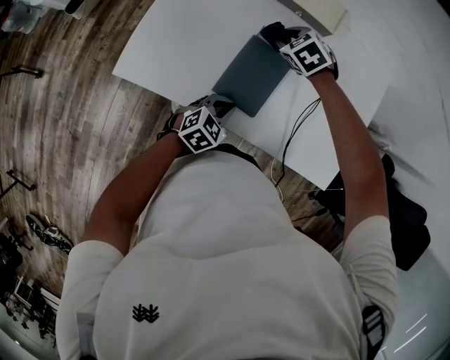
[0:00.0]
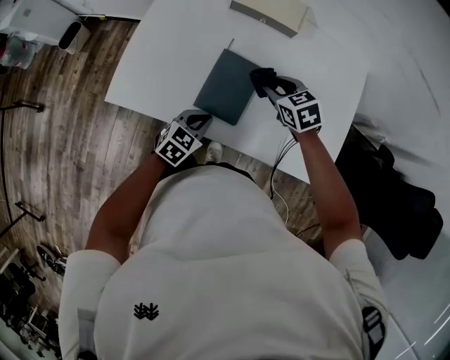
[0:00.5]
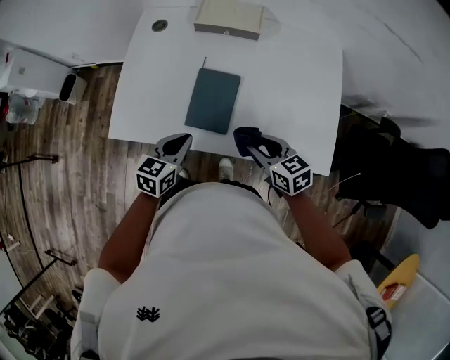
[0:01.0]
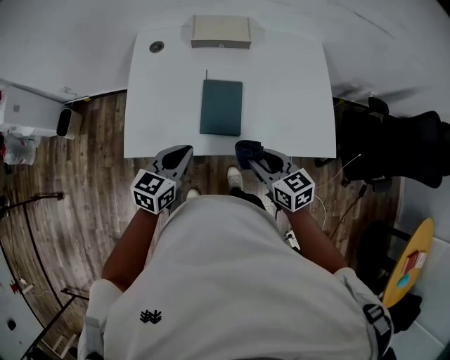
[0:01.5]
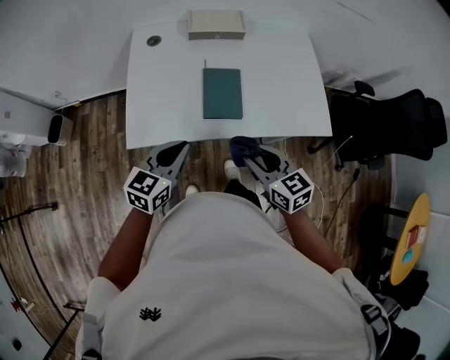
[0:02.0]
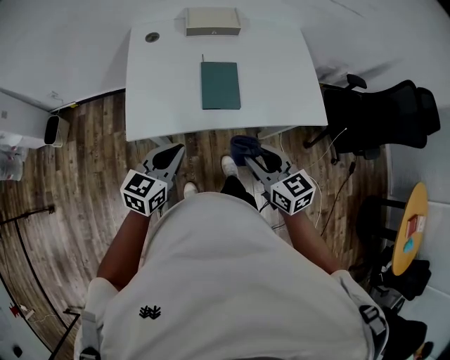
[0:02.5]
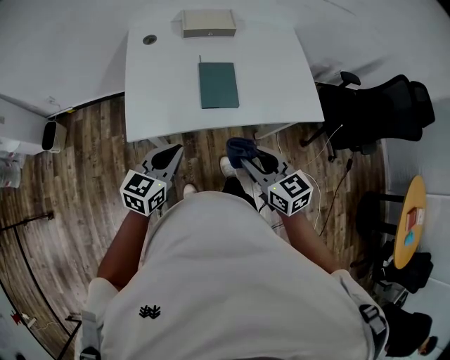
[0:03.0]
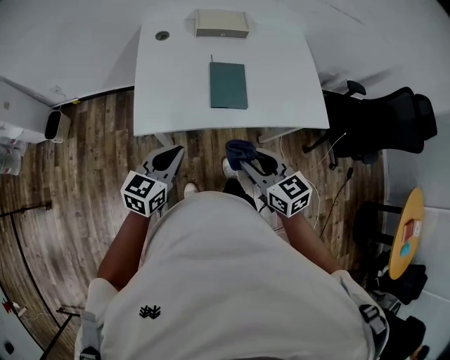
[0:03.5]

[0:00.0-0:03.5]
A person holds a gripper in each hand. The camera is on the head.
0:00.0 to 0:02.0: The right gripper moves backward, approximately 40 cm, and tips its fingers upward by approximately 40 degrees; the left gripper shifts approximately 25 cm upward, to the left and backward, and turns by roughly 30 degrees.
0:02.0 to 0:03.5: The grippers both shift backward by approximately 5 cm.

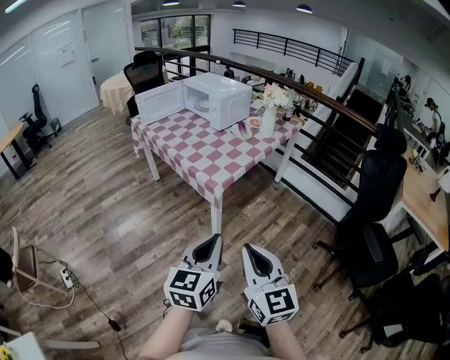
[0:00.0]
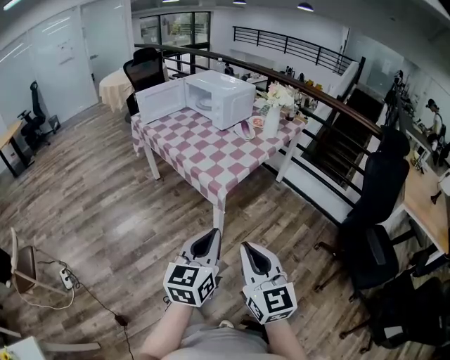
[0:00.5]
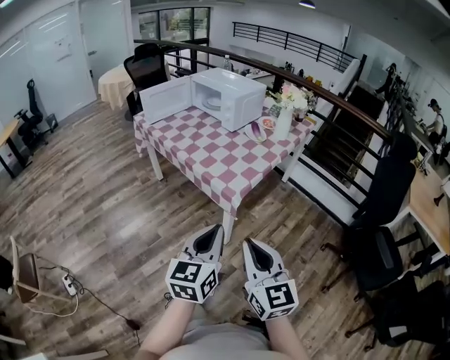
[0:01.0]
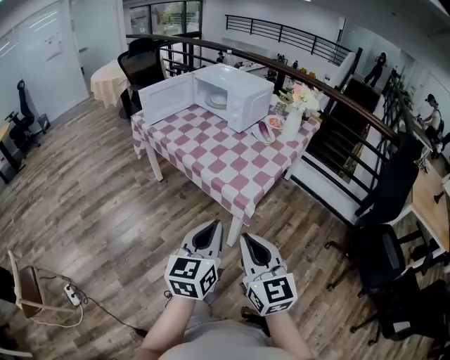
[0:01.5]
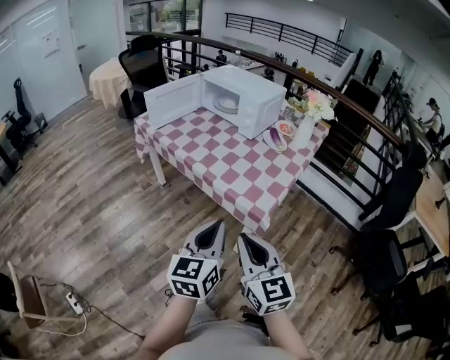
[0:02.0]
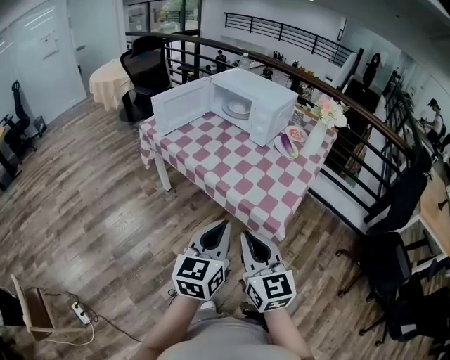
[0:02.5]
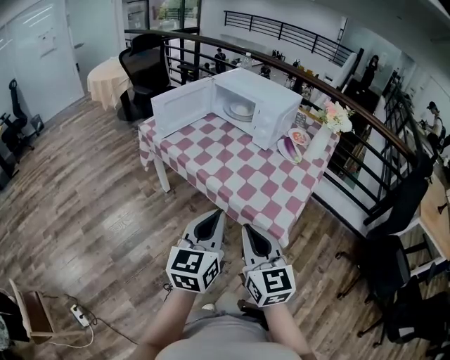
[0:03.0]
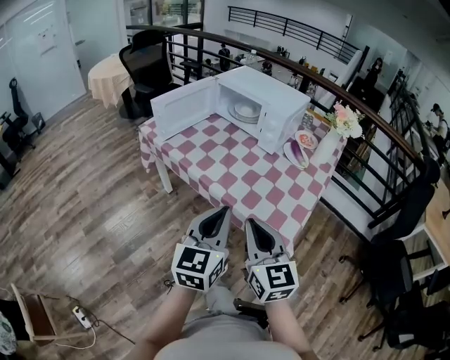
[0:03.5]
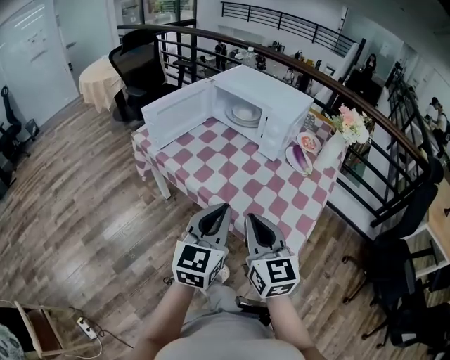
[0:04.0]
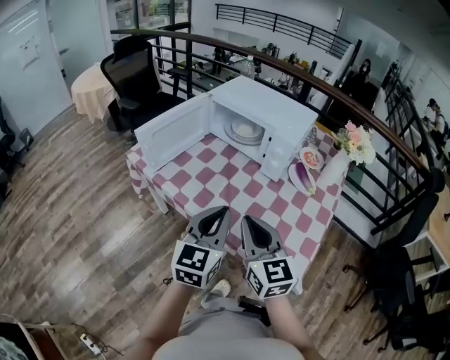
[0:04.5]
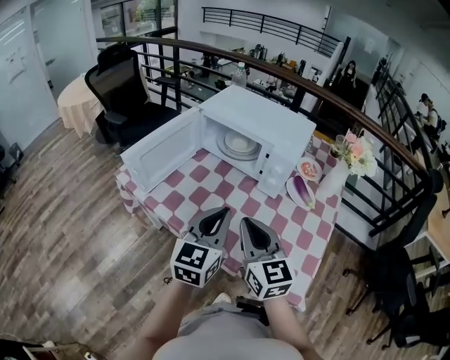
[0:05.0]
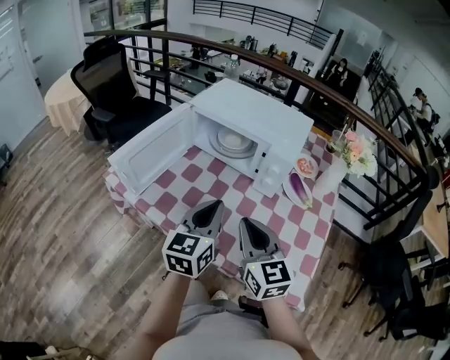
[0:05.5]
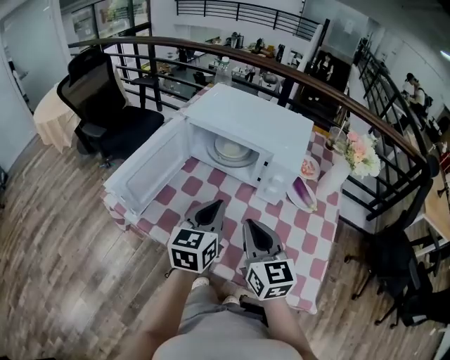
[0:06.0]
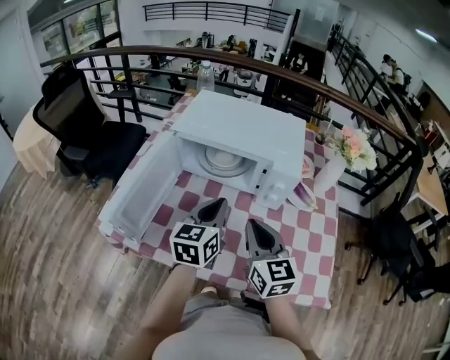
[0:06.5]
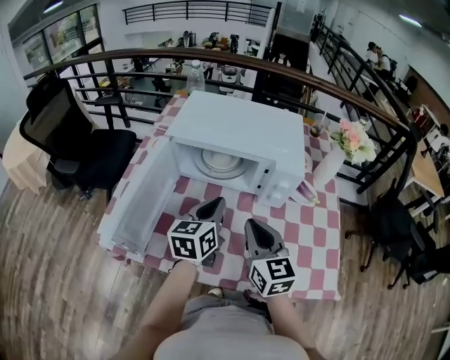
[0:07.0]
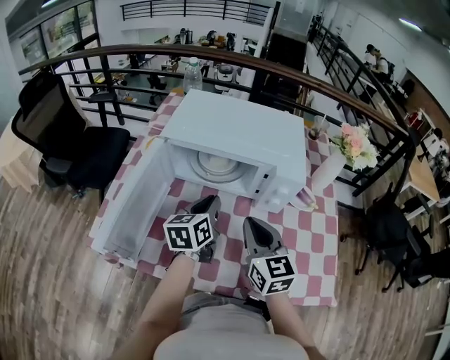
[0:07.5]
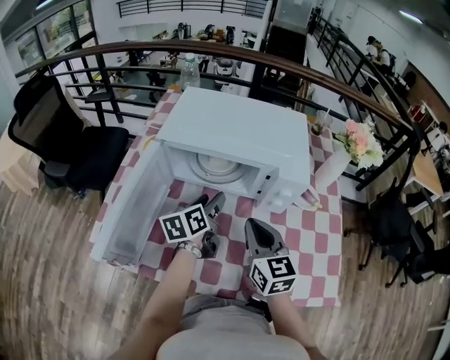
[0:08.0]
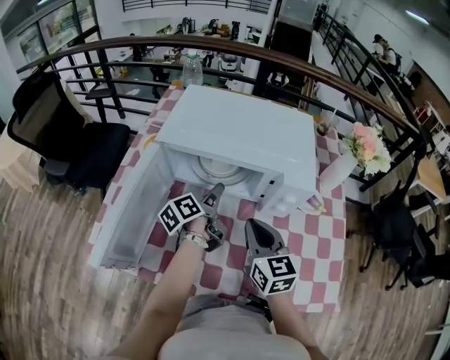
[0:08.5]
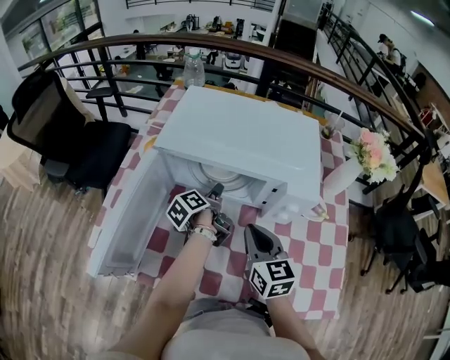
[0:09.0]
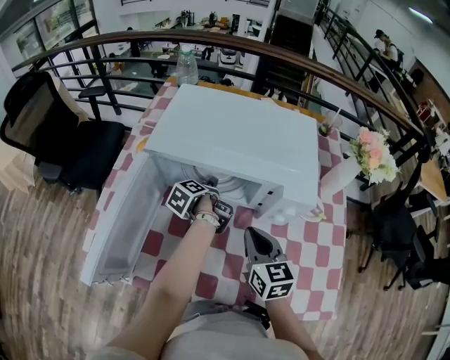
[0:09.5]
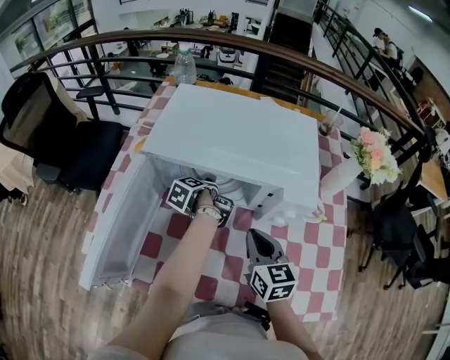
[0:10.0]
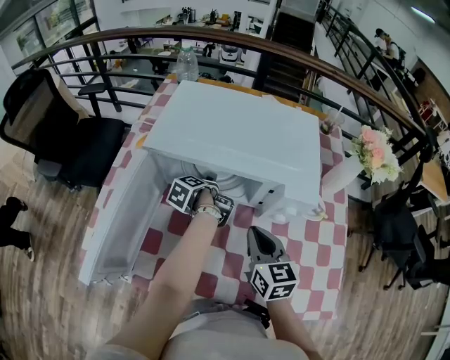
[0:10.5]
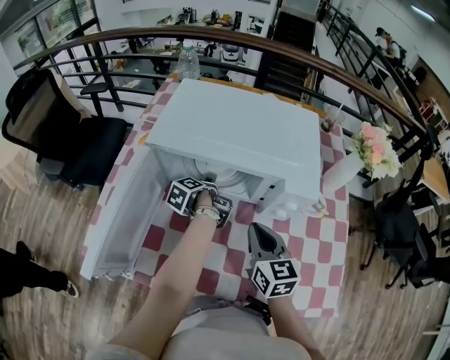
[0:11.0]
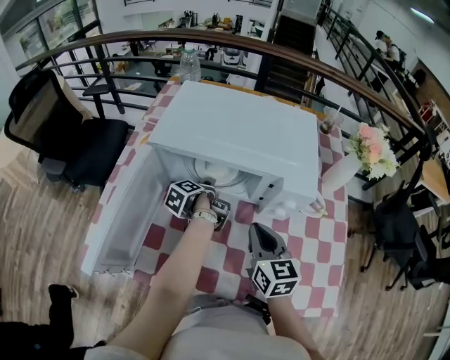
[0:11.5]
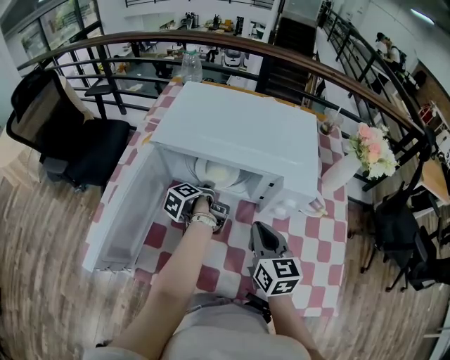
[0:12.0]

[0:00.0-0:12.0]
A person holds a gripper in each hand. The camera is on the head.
0:00.0 to 0:02.0: The left gripper is displaced forward and to the left by approximately 30 cm. Meanwhile the right gripper heads to the left and forward, covering roughly 35 cm.
0:02.0 to 0:04.0: The grippers both shift forward by some 25 cm.
0:04.0 to 0:06.0: The grippers both shift forward by about 25 cm.
0:06.0 to 0:08.0: The right gripper shifts approximately 10 cm forward and downward; the left gripper moves forward and downward, some 20 cm, changes its angle by approximately 30 degrees, and opens.
0:08.0 to 0:10.0: The left gripper shifts approximately 15 cm downward and forward, and rolls counterclockwise, seen from behind, by approximately 50 degrees; the right gripper shifts approximately 5 cm downward.
0:10.0 to 0:12.0: The left gripper closes up.

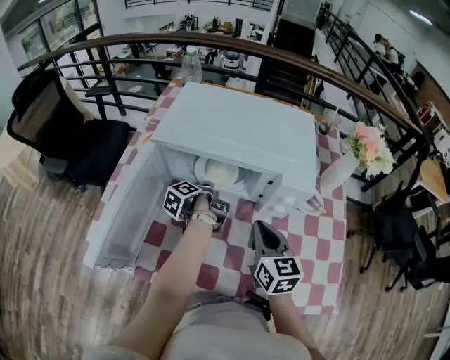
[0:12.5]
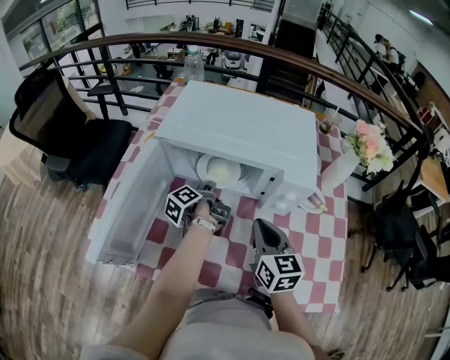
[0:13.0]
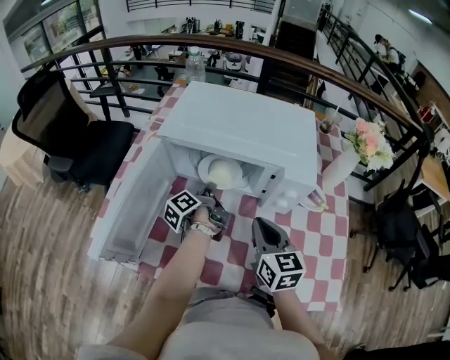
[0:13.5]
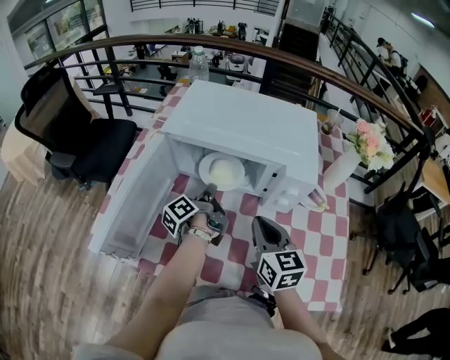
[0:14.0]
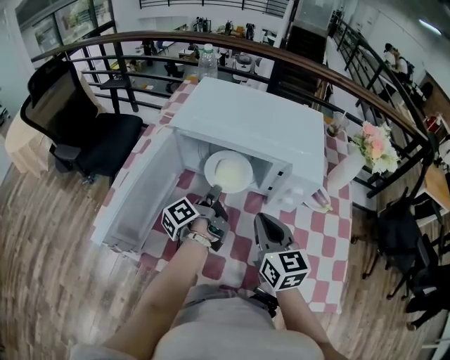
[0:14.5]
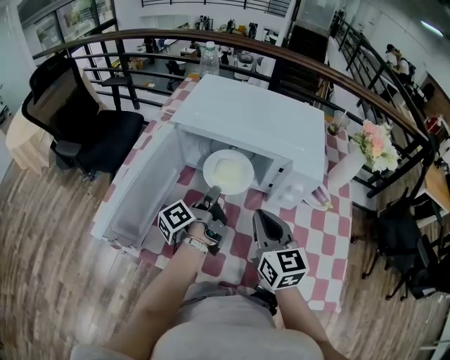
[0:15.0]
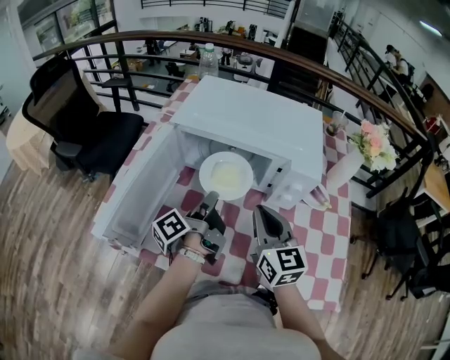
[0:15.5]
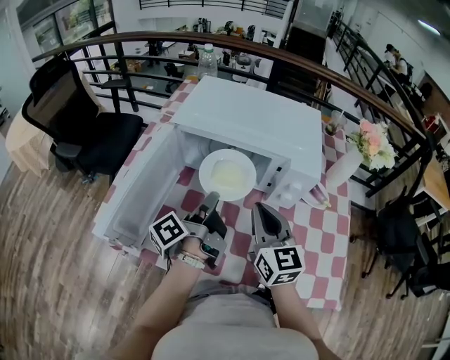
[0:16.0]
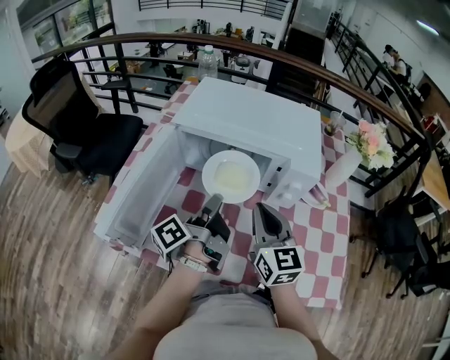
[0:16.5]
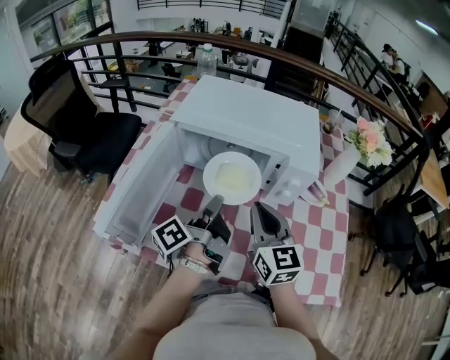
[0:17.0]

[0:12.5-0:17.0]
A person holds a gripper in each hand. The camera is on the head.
0:12.5 to 0:14.5: The left gripper moves upward and backward, about 10 cm, and changes its angle by about 30 degrees.
0:14.5 to 0:17.0: The left gripper travels backward and upward by roughly 10 cm.

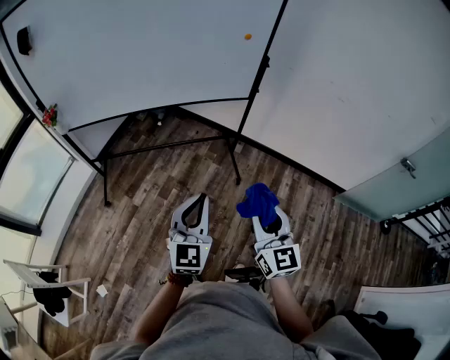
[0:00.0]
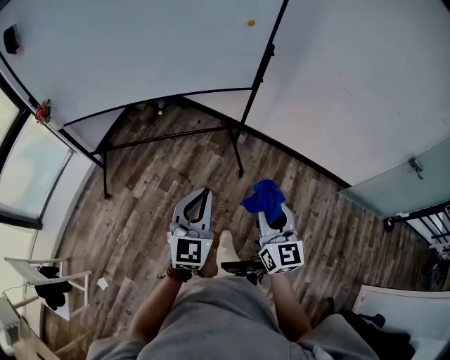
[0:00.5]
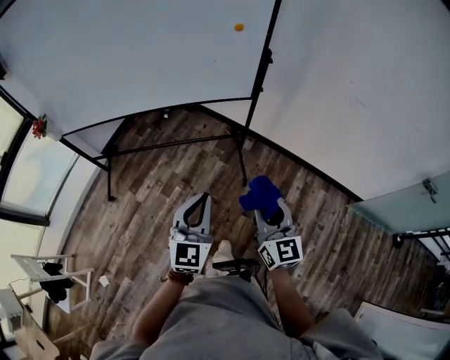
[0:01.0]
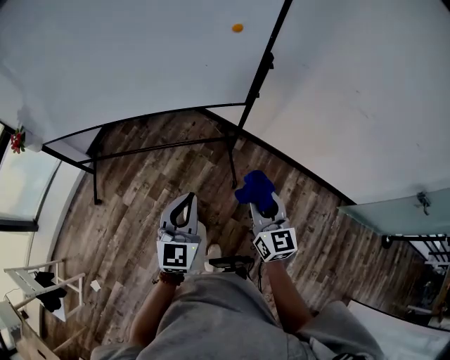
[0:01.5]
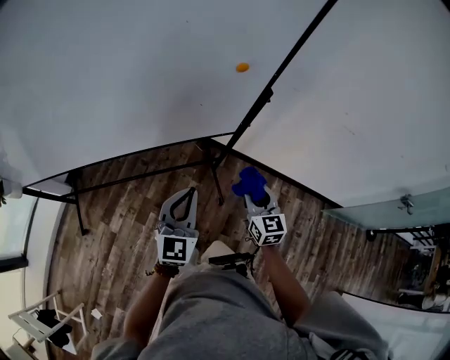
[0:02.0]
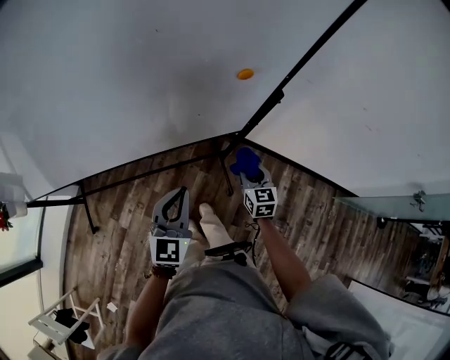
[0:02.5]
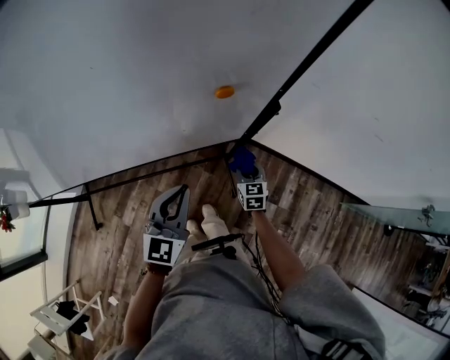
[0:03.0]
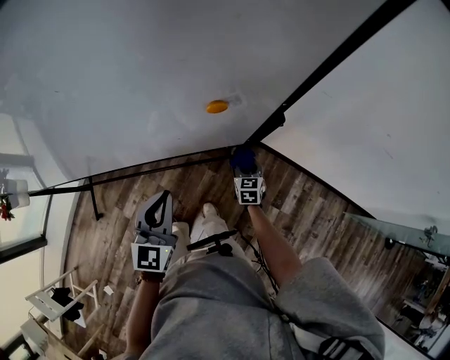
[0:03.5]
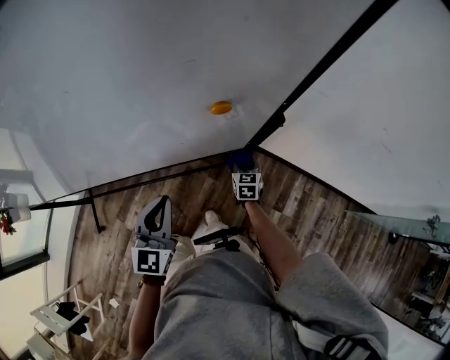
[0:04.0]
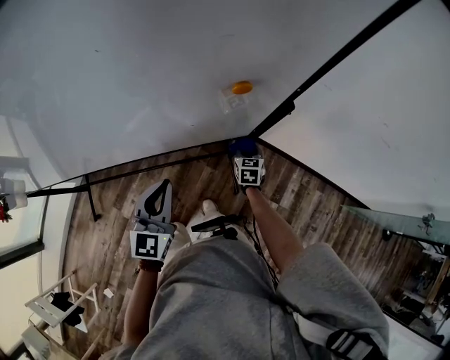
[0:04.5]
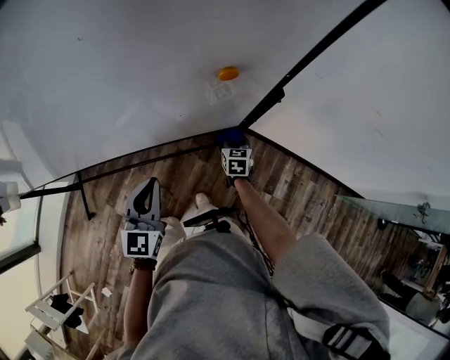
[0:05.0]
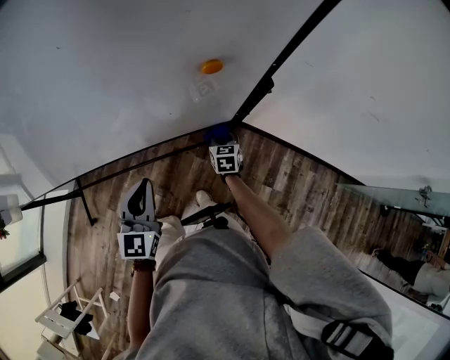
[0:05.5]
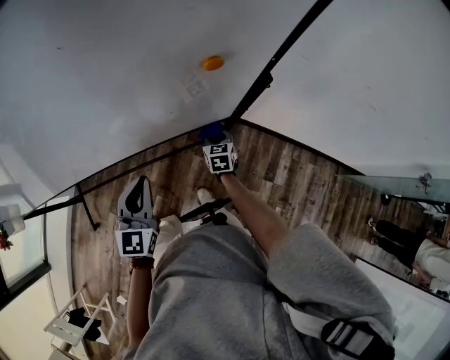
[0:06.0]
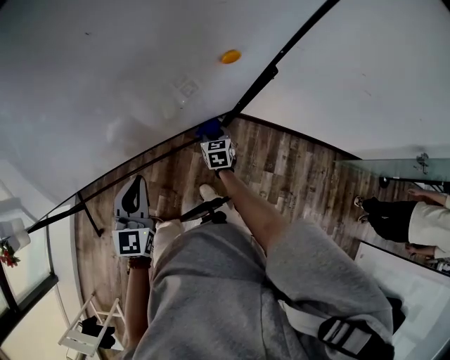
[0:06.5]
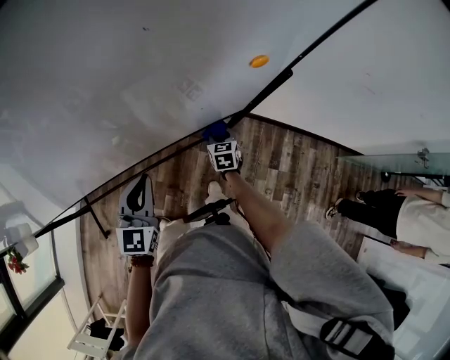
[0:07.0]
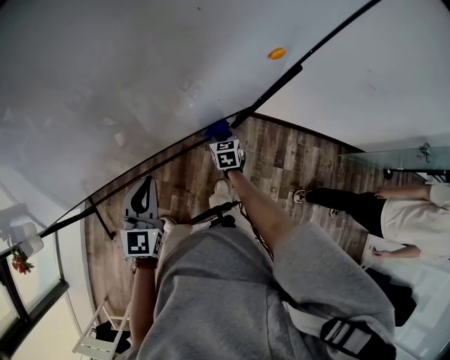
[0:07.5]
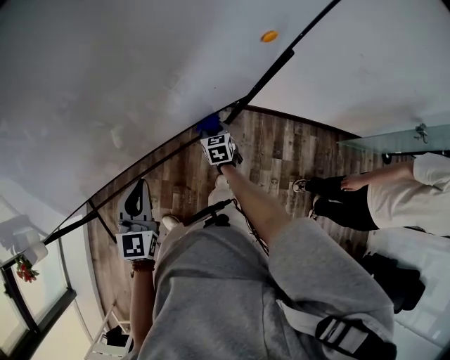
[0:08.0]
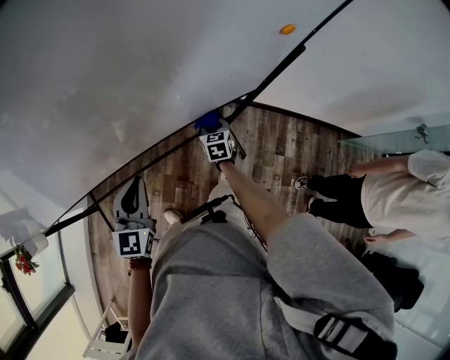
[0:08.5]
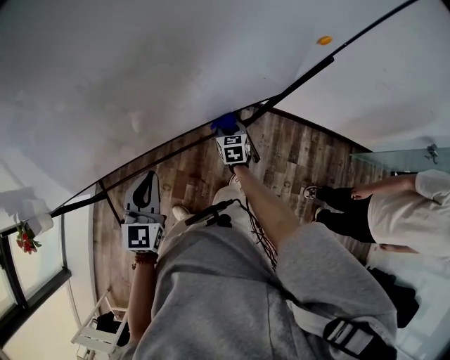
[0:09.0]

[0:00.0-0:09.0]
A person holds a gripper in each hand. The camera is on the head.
0:00.0 to 0:02.0: Both grippers are carried forward, approximately 50 cm.
0:02.0 to 0:04.5: The left gripper travels forward and downward by about 15 cm, while the right gripper moves forward and downward, about 35 cm, and swivels roughly 20 degrees.
0:04.5 to 0:07.0: The grippers both shift to the left by about 10 cm.
0:07.0 to 0:09.0: Both grippers travel together to the left and backward, approximately 15 cm.
